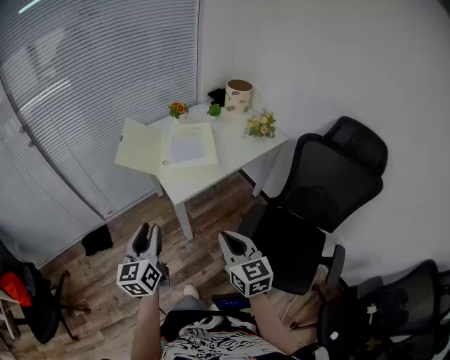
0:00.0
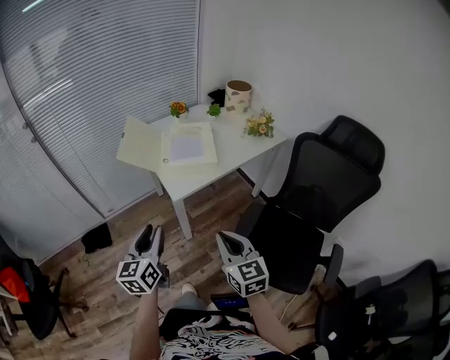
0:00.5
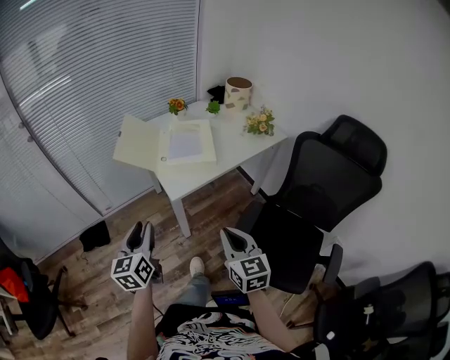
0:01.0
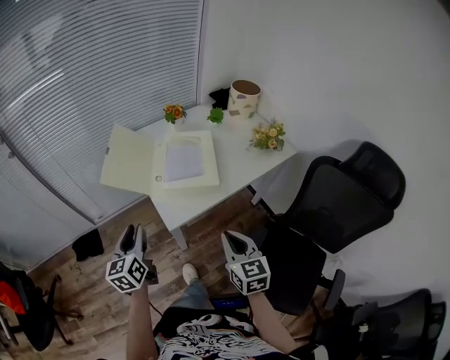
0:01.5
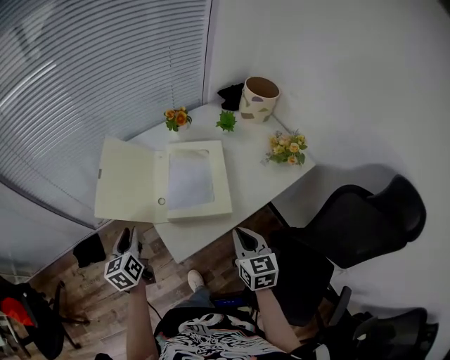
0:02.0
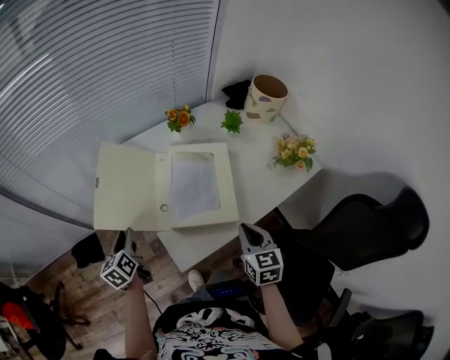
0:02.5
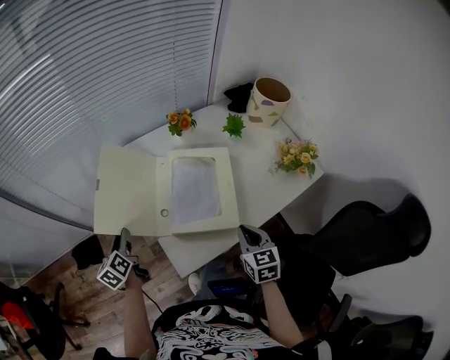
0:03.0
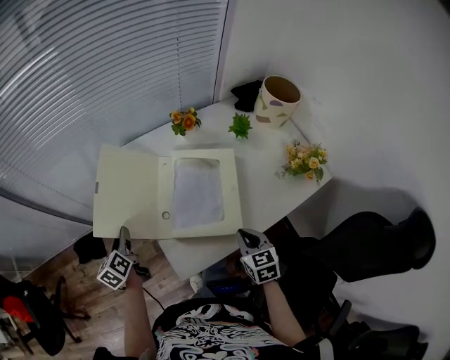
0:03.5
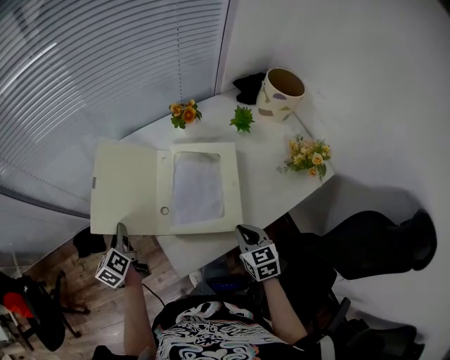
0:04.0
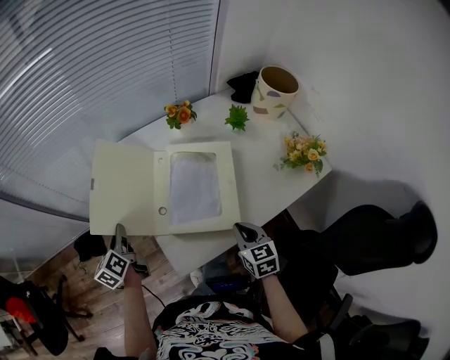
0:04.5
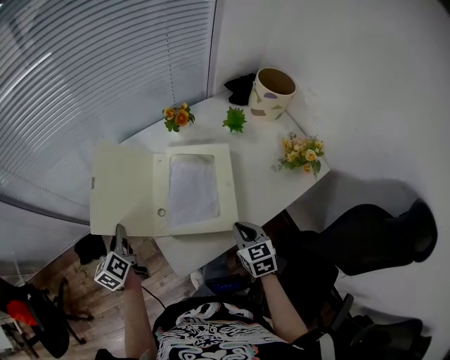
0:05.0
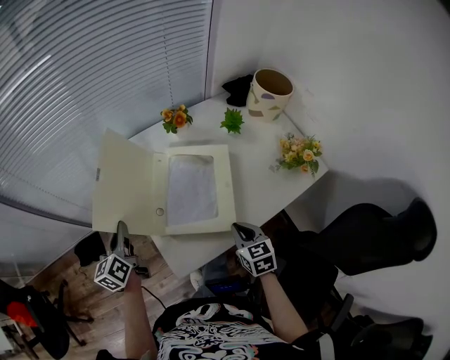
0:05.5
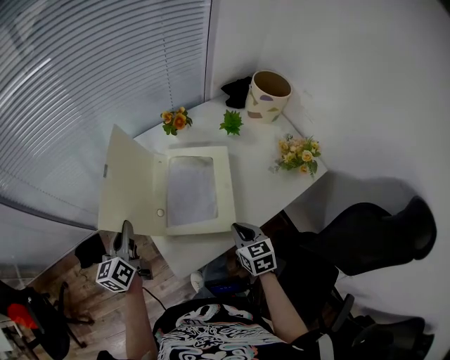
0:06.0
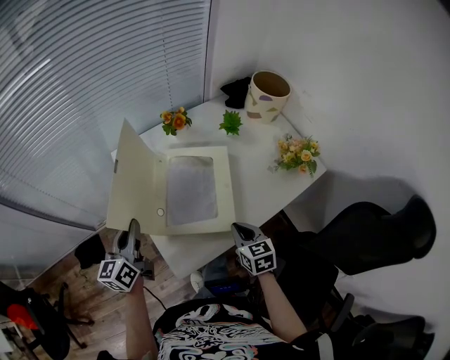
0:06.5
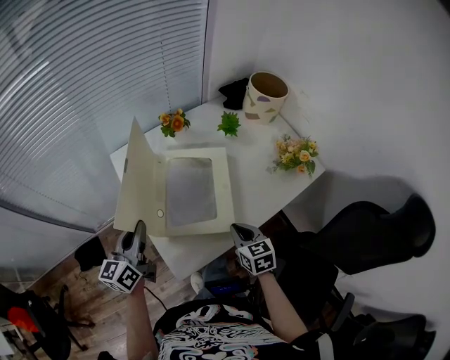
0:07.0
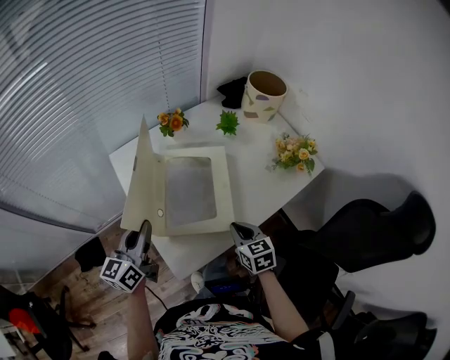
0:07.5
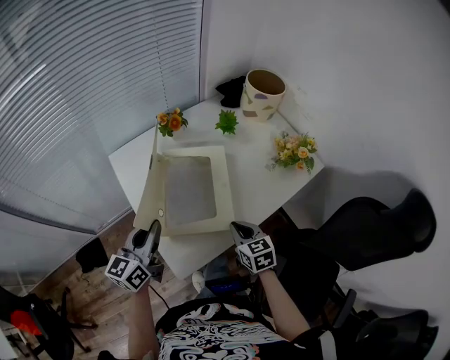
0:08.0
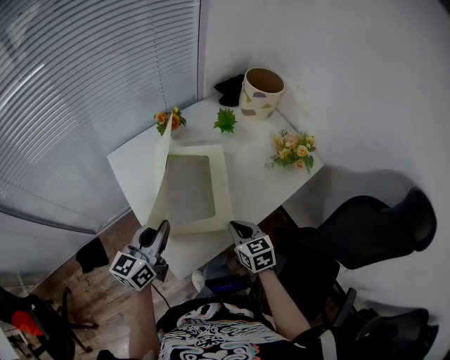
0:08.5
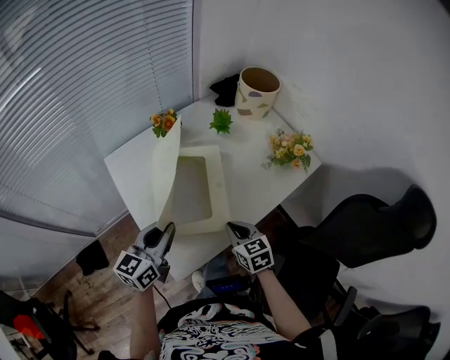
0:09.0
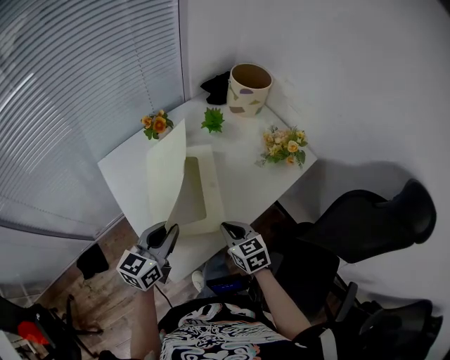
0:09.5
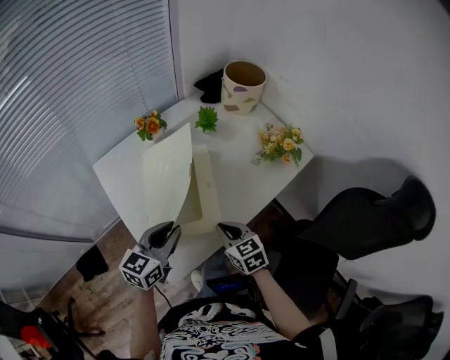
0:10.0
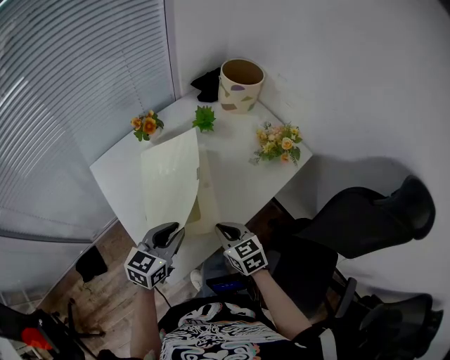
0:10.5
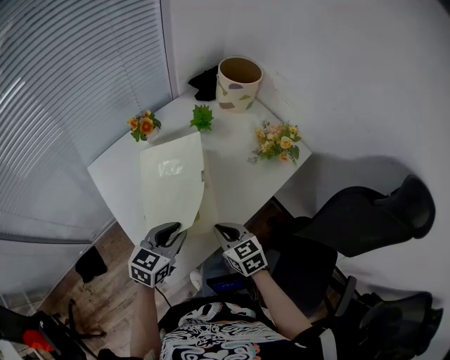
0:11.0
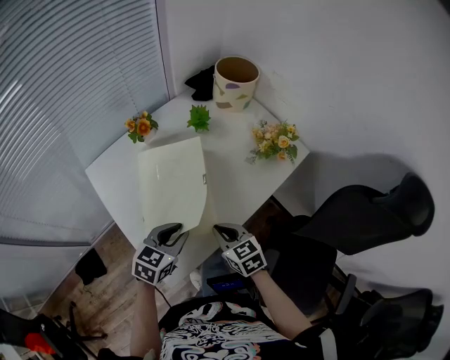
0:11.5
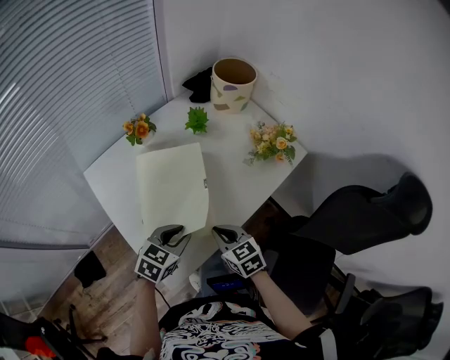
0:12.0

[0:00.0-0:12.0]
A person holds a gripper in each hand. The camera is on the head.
0:00.0 to 0:02.0: The right gripper heads forward, covering some 30 cm. Meanwhile the left gripper moves forward and downward, roughly 35 cm, and changes its angle by approximately 20 degrees.
0:02.0 to 0:04.0: The right gripper shifts some 10 cm downward and forward, while the left gripper travels forward and downward by approximately 10 cm, swivels some 20 degrees, and closes.
0:04.0 to 0:06.0: The left gripper is displaced upward and to the right by about 10 cm, and changes its angle by some 20 degrees.
0:06.0 to 0:08.0: The left gripper heads to the right, covering about 10 cm, and swivels approximately 30 degrees.
0:08.0 to 0:10.0: The left gripper is displaced to the right by some 10 cm, and changes its angle by about 20 degrees.
0:10.0 to 0:12.0: The left gripper moves downward, some 5 cm, and rotates some 30 degrees.

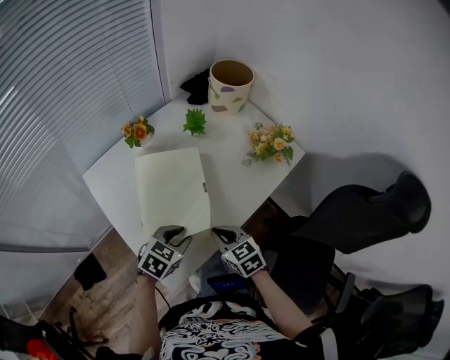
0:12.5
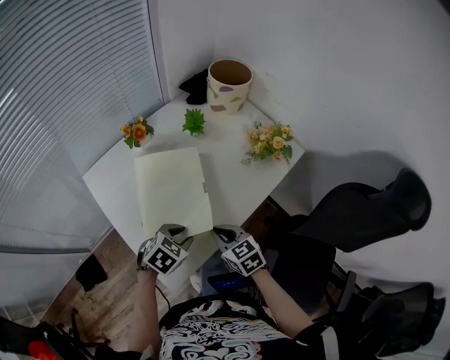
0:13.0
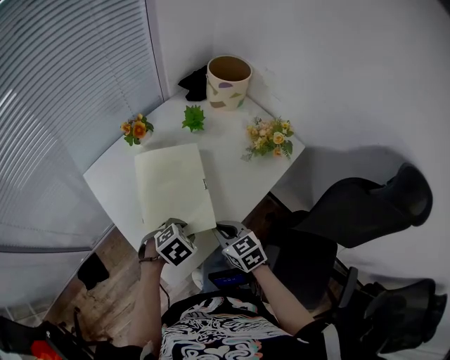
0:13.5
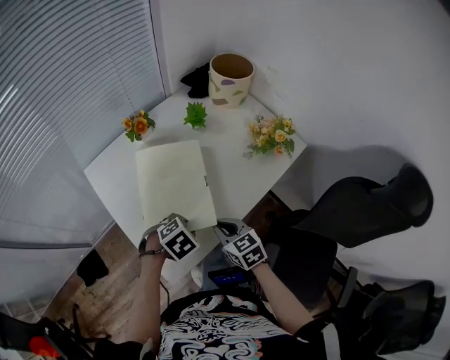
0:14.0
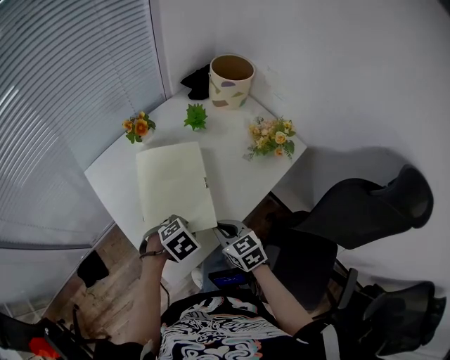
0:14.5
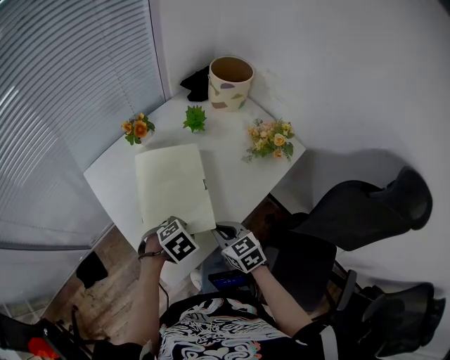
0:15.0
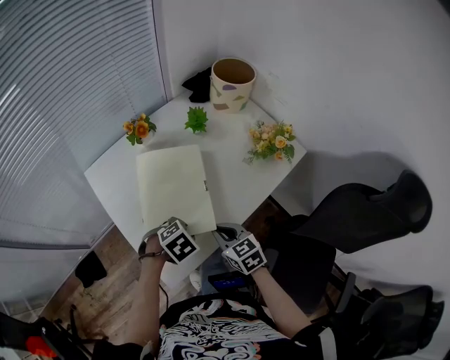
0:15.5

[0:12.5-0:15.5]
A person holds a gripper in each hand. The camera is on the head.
0:12.5 to 0:14.0: The left gripper rotates about 30 degrees.
0:14.0 to 0:15.5: Neither gripper changes place.

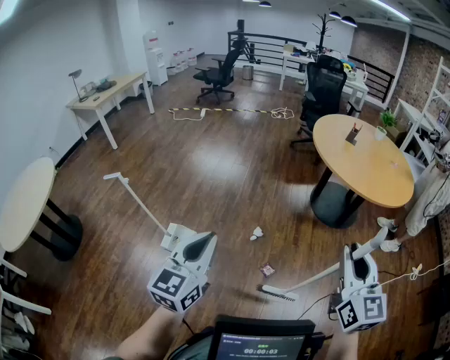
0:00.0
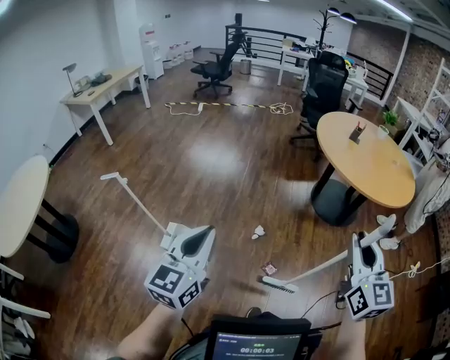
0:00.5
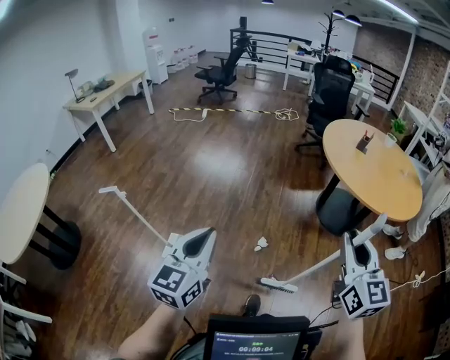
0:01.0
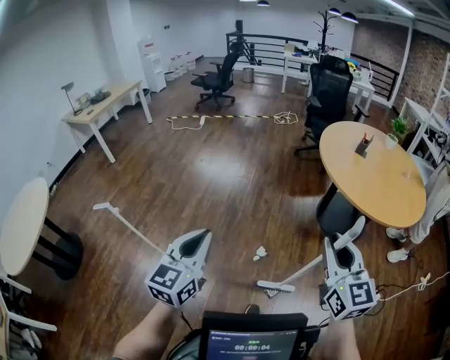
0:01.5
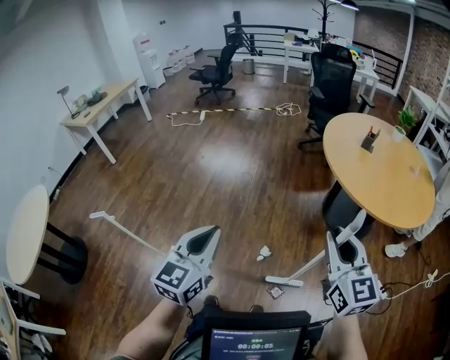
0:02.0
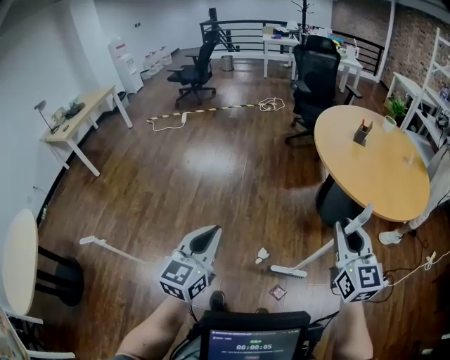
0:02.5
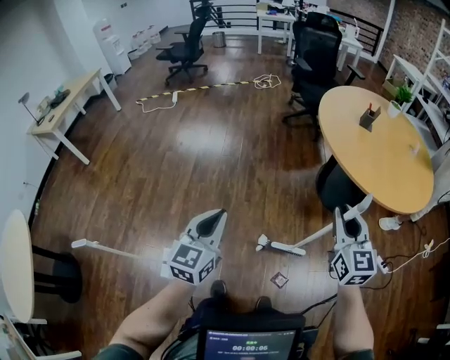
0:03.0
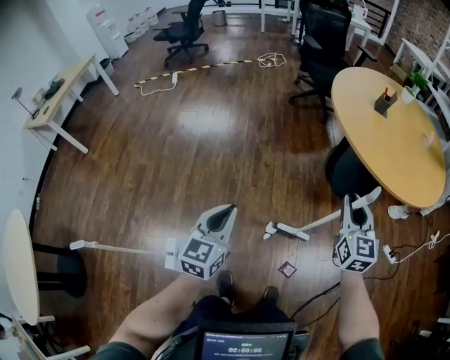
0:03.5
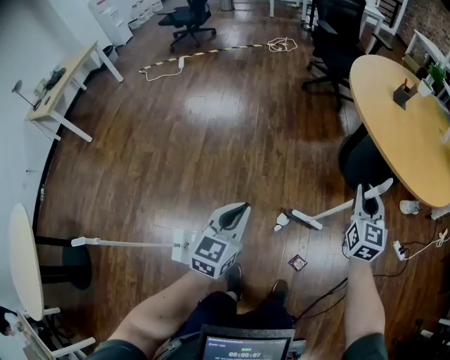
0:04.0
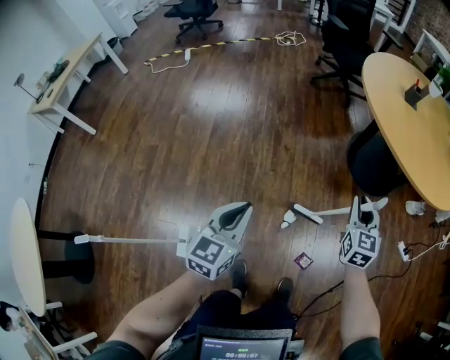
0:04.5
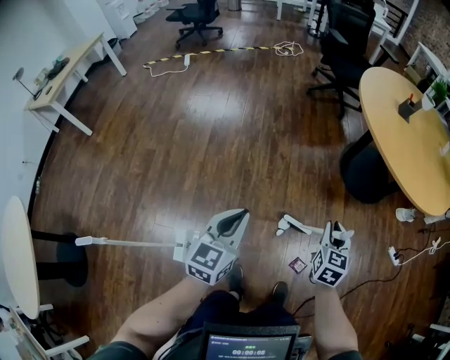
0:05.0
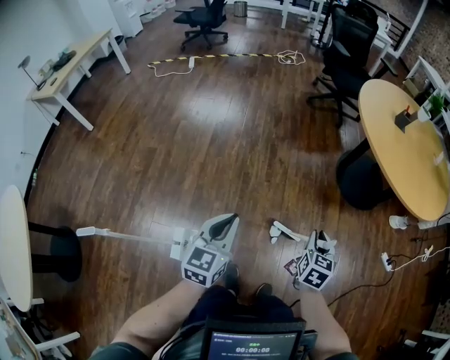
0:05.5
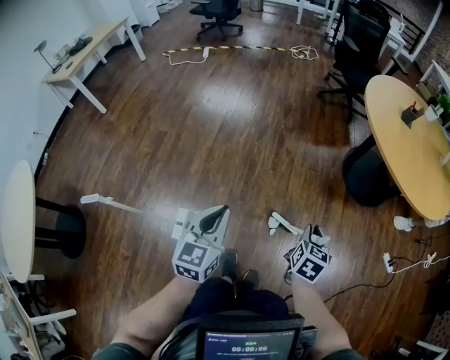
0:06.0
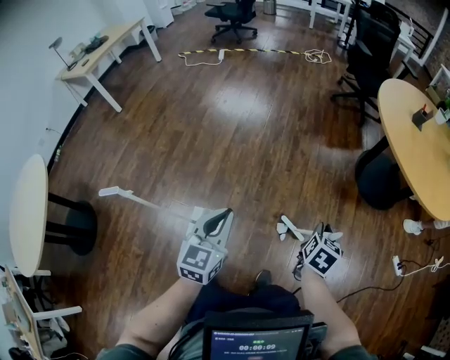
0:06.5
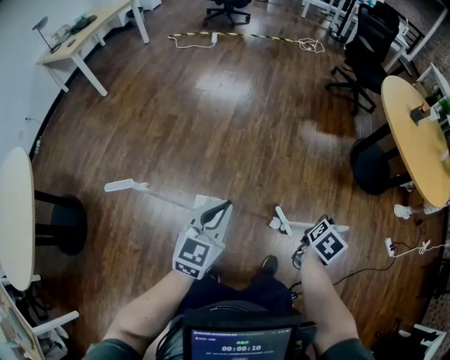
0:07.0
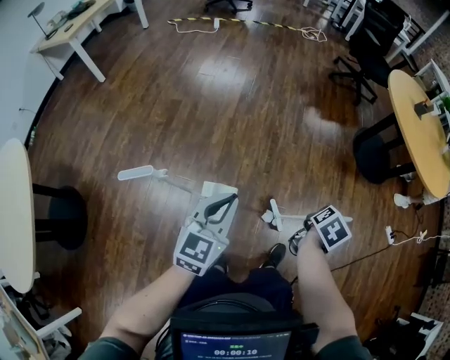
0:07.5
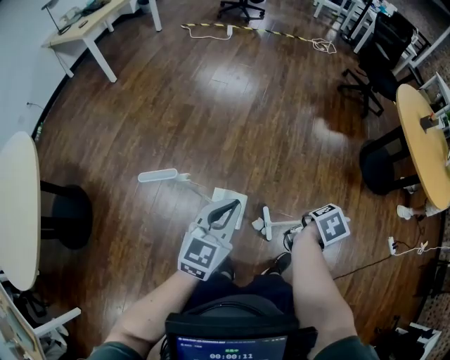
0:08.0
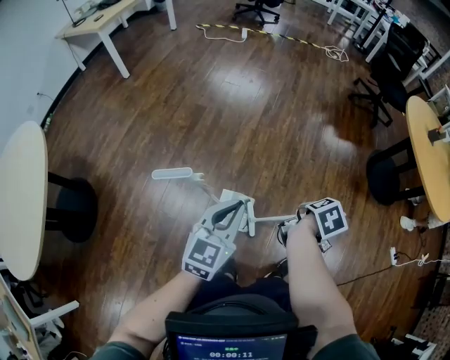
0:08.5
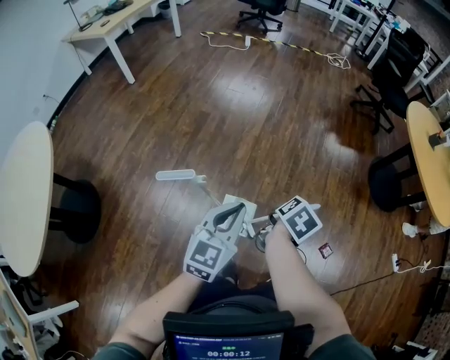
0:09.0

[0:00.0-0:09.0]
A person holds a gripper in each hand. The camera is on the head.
0:00.0 to 0:02.0: The grippers both shift forward by about 40 cm.
0:02.0 to 0:04.5: The two grippers go some 50 cm downward, forward and to the left. The right gripper changes its angle by roughly 30 degrees.
0:04.5 to 0:07.0: The pair of grippers is taken backward and to the left, roughly 50 cm. The right gripper swivels approximately 40 degrees.
0:07.0 to 0:09.0: The right gripper heads to the left and backward, covering approximately 35 cm, while the left gripper travels backward and to the left by approximately 20 cm.

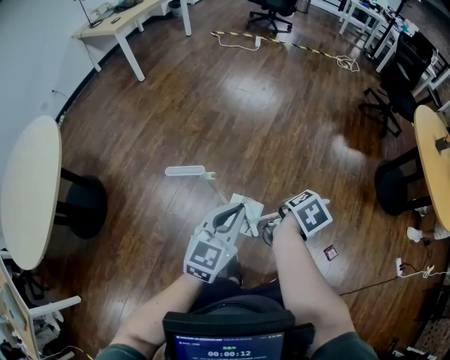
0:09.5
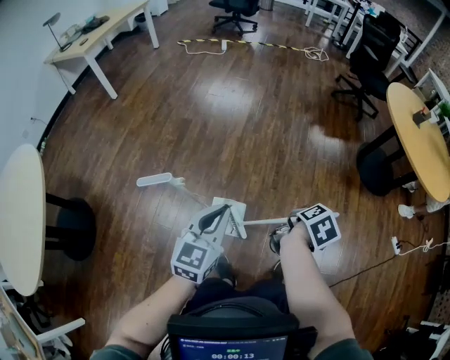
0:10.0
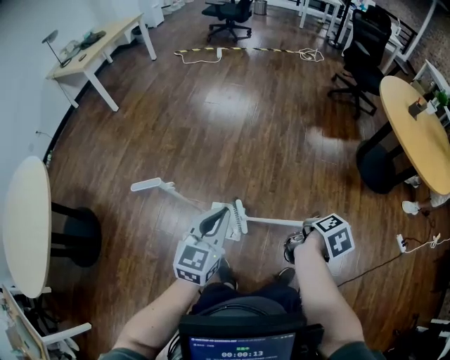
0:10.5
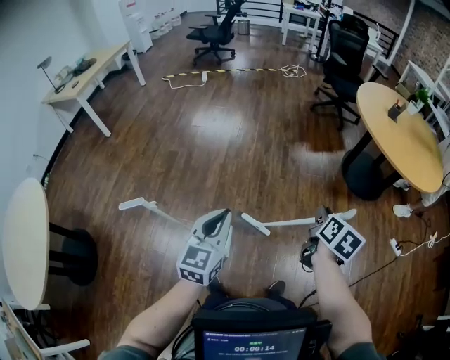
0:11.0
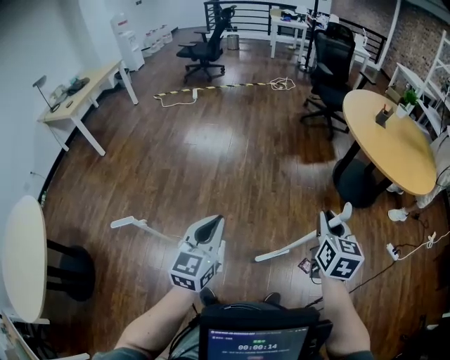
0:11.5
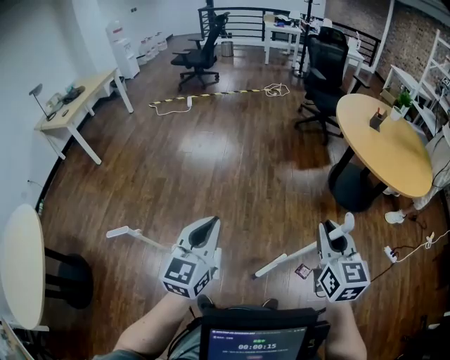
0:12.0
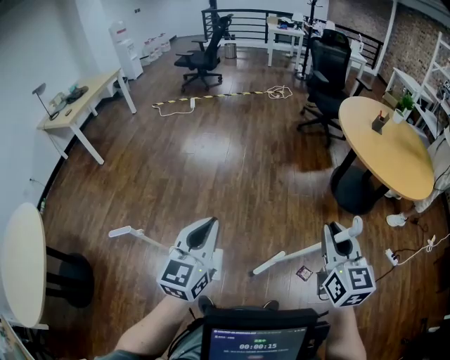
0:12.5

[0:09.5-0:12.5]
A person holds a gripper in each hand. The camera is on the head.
0:09.5 to 0:11.0: The right gripper heads to the right and upward, covering about 40 cm, and rotates about 20 degrees; the left gripper goes roughly 30 cm to the right and forward.
0:11.0 to 0:12.5: The left gripper heads upward and to the right, covering approximately 15 cm; the right gripper is displaced upward by approximately 15 cm, and rotates about 40 degrees.
